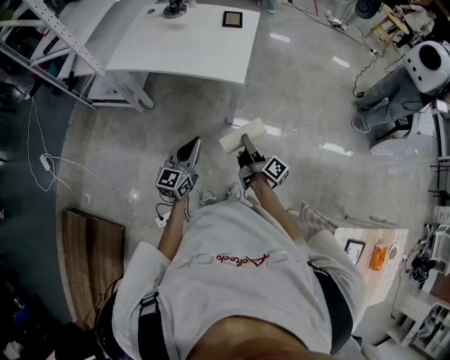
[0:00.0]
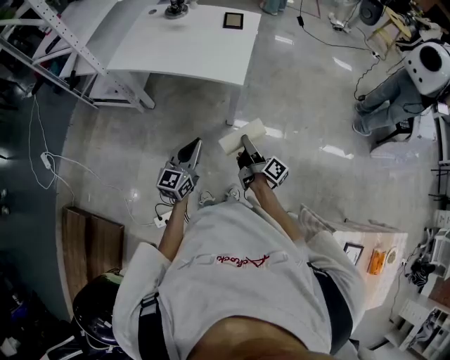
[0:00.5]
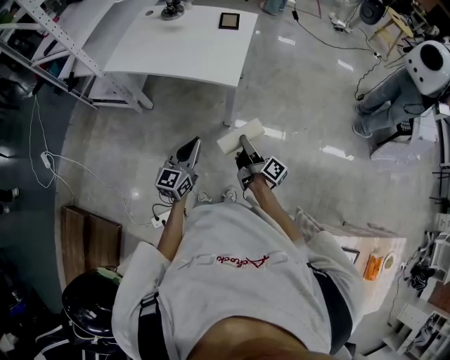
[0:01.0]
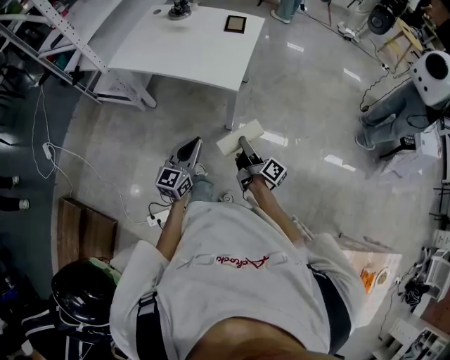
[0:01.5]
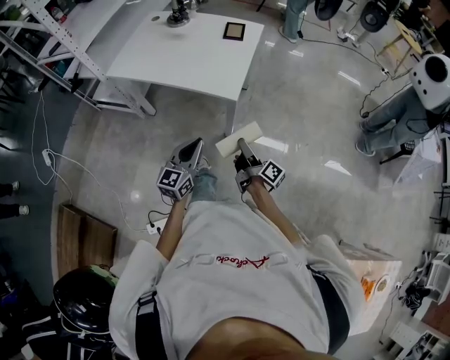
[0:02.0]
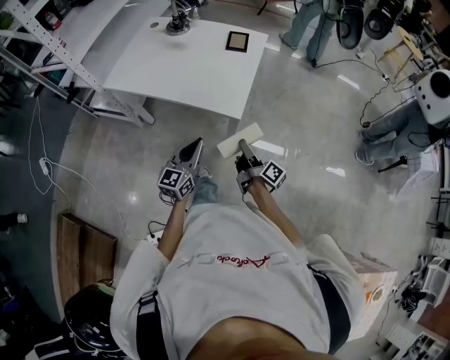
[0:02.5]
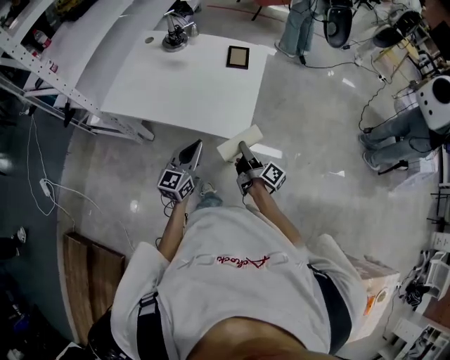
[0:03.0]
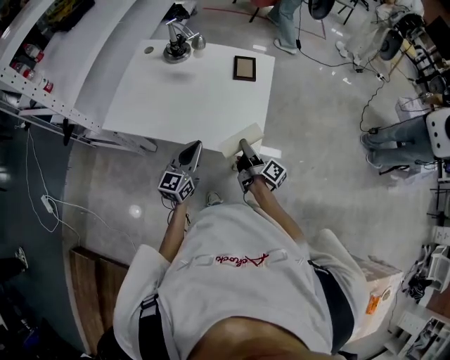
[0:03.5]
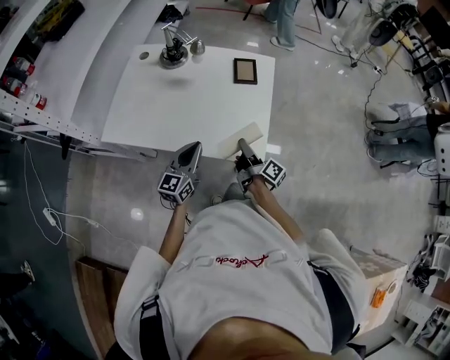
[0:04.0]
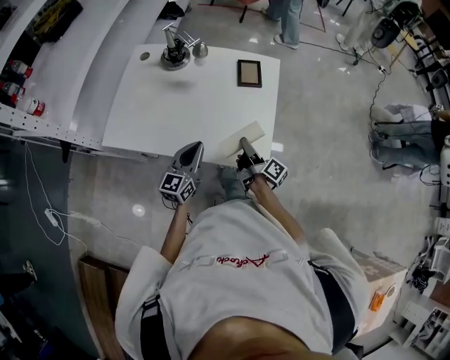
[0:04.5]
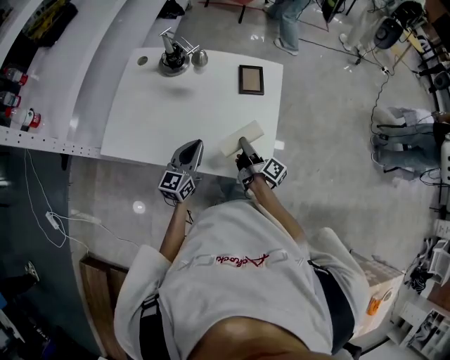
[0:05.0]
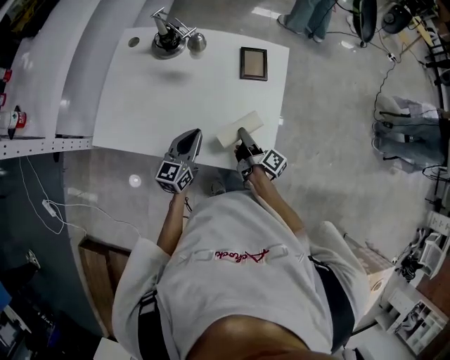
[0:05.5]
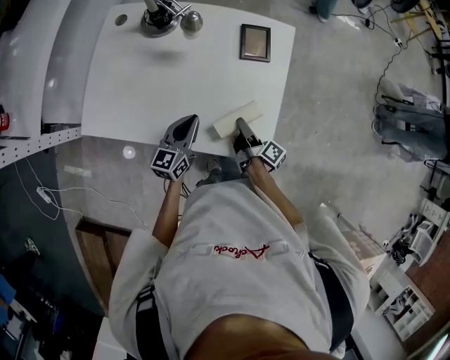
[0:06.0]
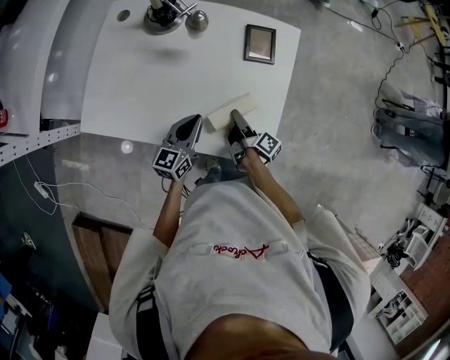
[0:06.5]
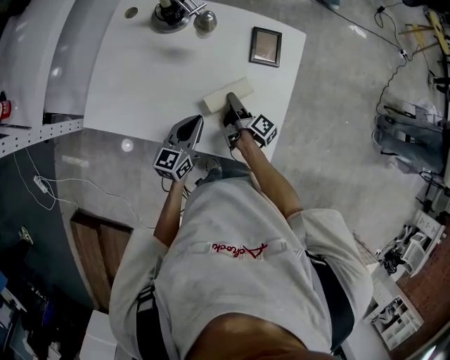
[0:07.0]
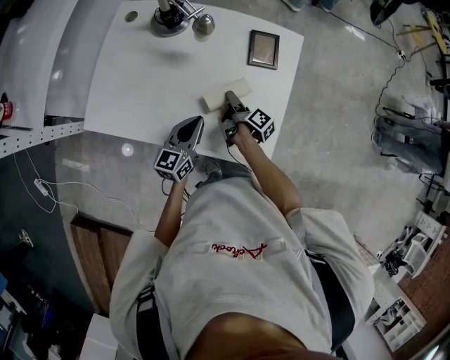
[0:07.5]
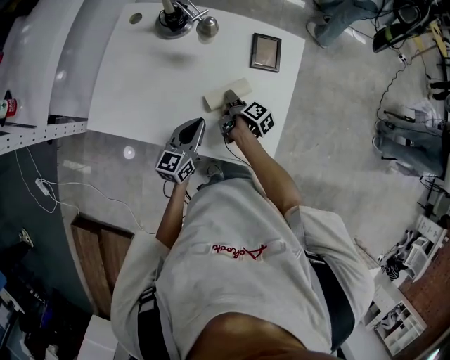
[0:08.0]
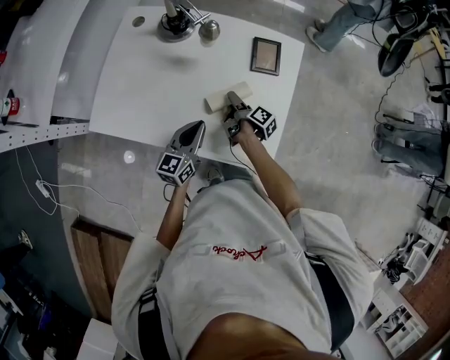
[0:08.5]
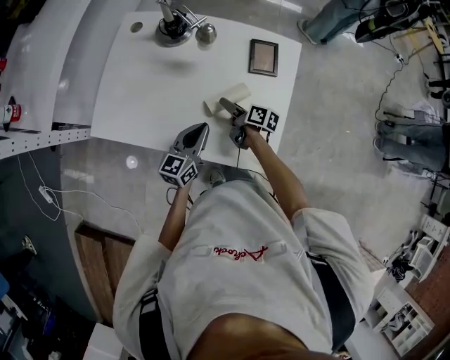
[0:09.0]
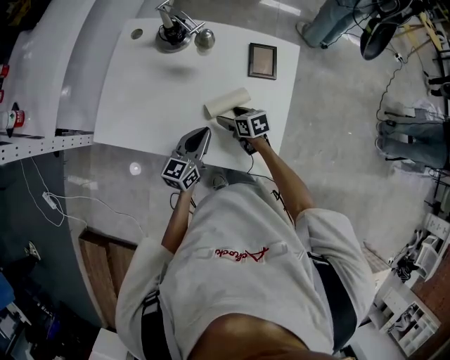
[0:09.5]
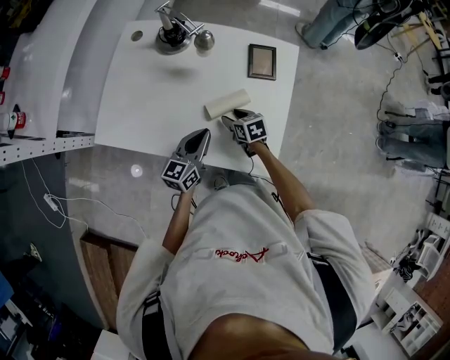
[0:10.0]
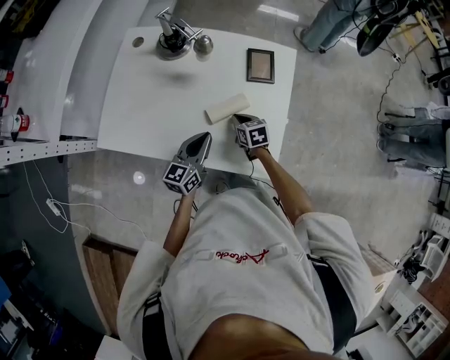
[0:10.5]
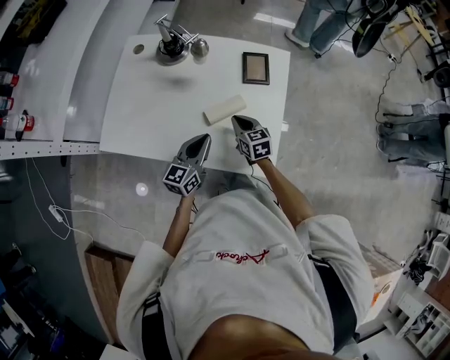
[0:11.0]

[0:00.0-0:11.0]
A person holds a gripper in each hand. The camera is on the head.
0:00.0 to 0:02.0: The right gripper heads forward, covering some 5 cm; the left gripper moves forward and to the right, some 10 cm.
0:02.0 to 0:03.5: The left gripper is displaced forward and to the left by roughly 30 cm. The right gripper moves forward, approximately 25 cm.
0:03.5 to 0:05.5: Both grippers move forward and downward, approximately 15 cm.
0:05.5 to 0:07.5: The right gripper is displaced forward, downward and to the left by roughly 10 cm.
0:07.5 to 0:09.0: The right gripper rotates about 30 degrees, and opens.
0:09.0 to 0:11.0: The right gripper moves upward, roughly 5 cm, rotates around the line of its fingers by some 50 degrees, counterclockwise from behind, and closes its fingers.

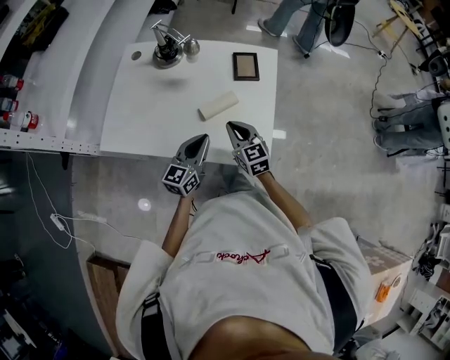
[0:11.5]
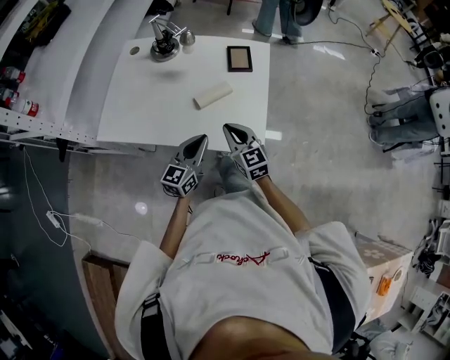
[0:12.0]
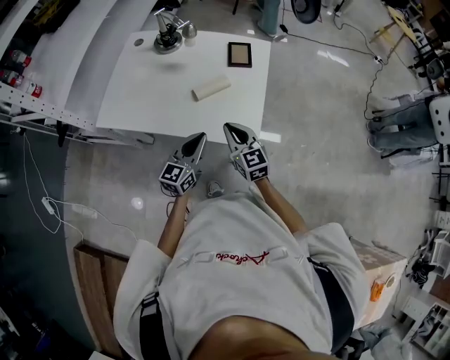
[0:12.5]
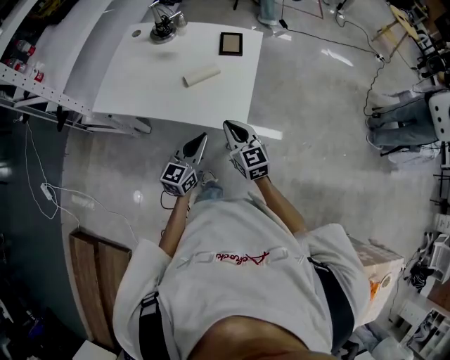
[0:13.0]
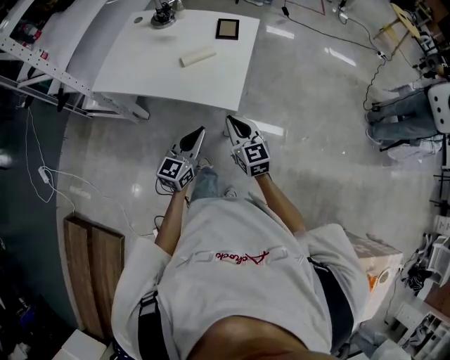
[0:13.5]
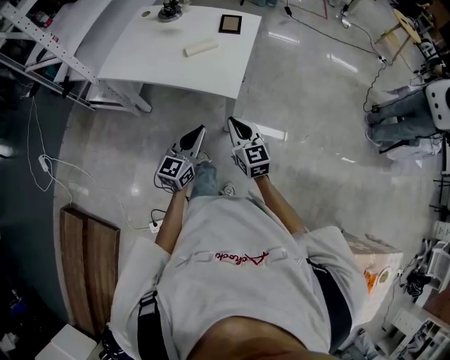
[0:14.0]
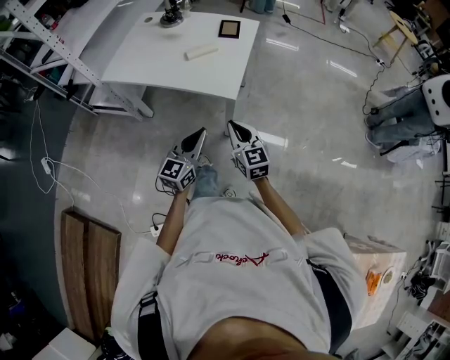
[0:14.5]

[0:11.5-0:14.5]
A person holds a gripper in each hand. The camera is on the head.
0:11.5 to 0:13.0: Both grippers travel together backward and to the right, some 20 cm.
0:13.0 to 0:14.5: Both grippers move backward, approximately 15 cm.

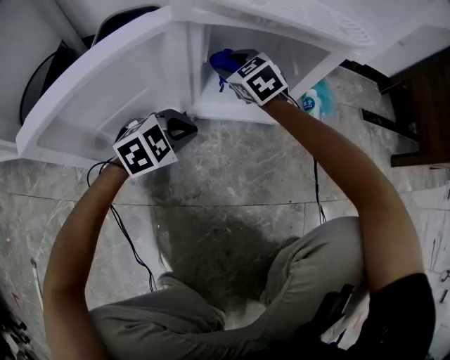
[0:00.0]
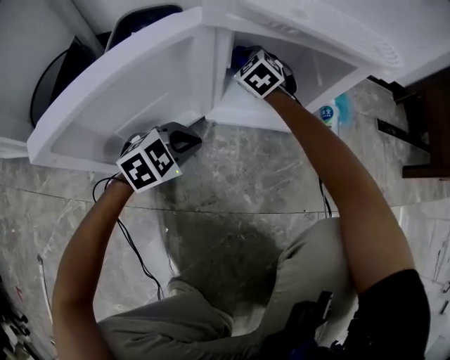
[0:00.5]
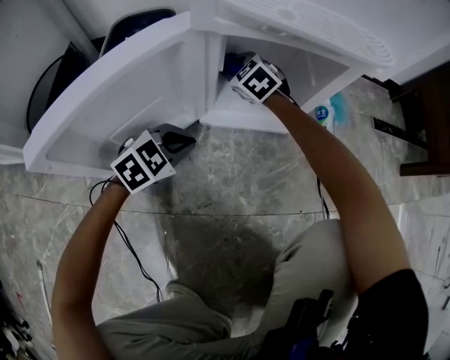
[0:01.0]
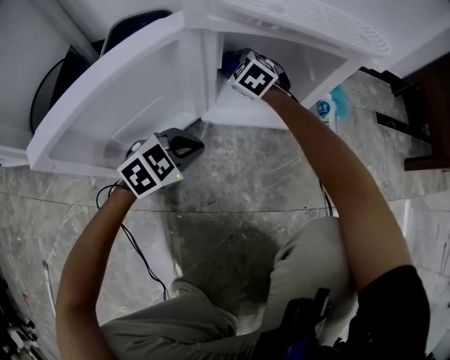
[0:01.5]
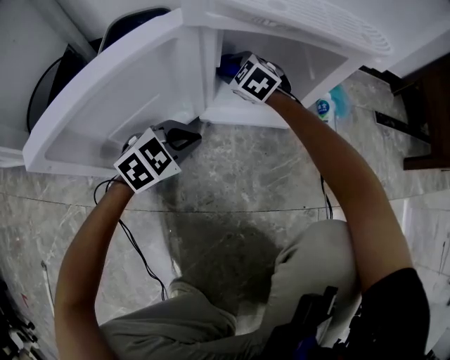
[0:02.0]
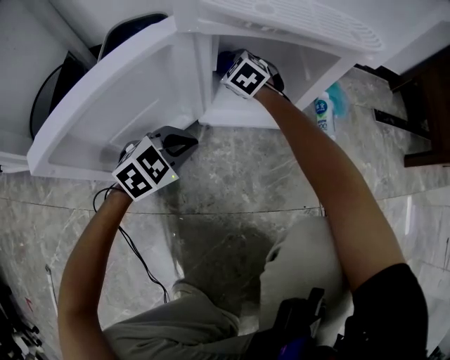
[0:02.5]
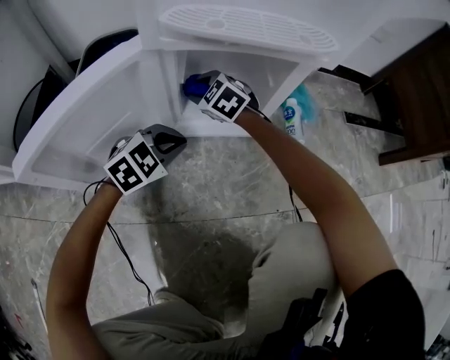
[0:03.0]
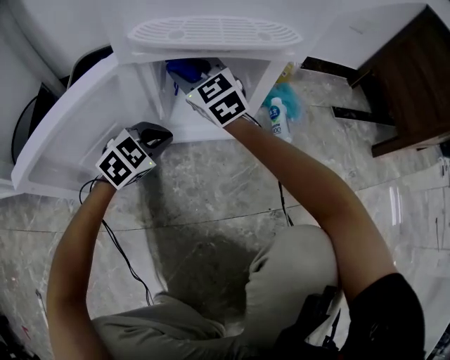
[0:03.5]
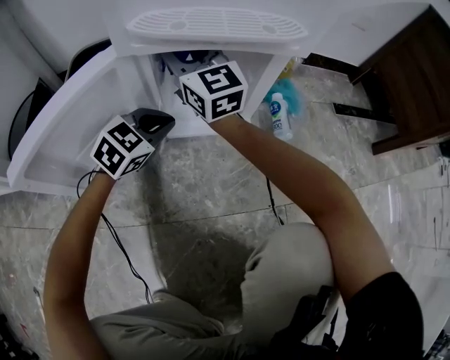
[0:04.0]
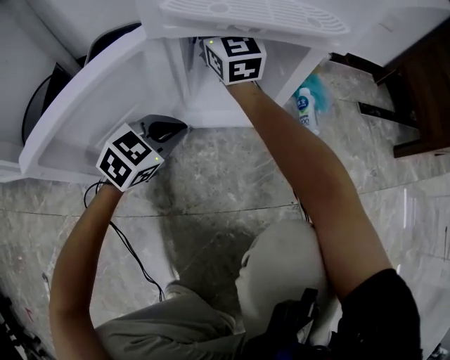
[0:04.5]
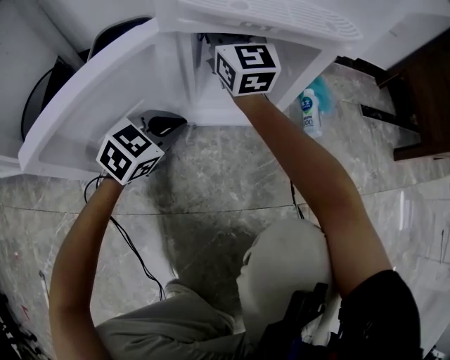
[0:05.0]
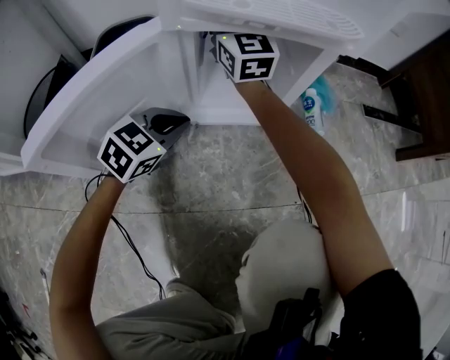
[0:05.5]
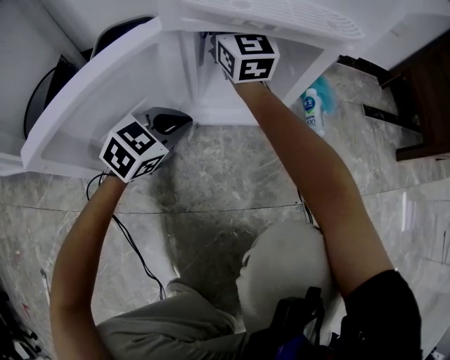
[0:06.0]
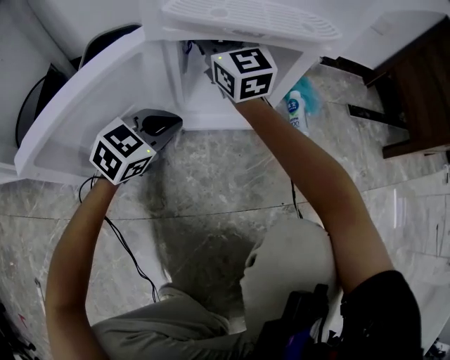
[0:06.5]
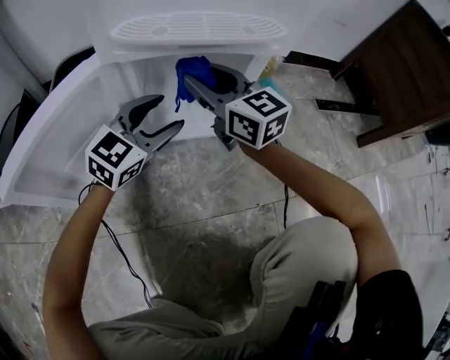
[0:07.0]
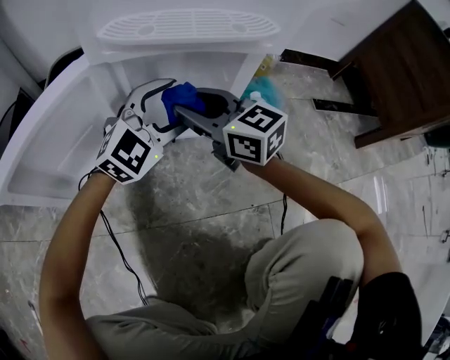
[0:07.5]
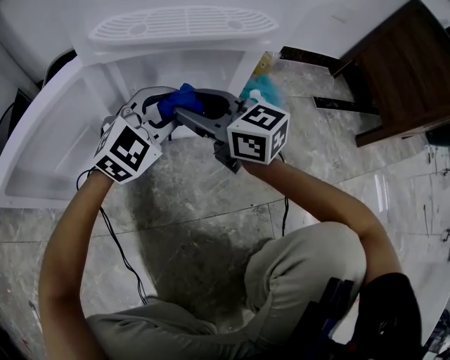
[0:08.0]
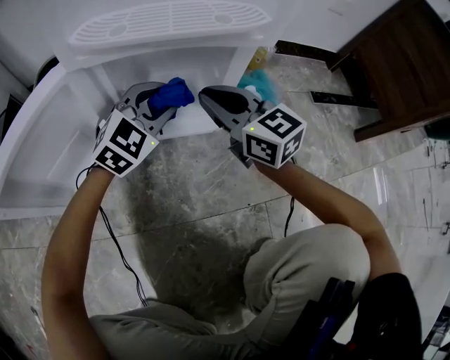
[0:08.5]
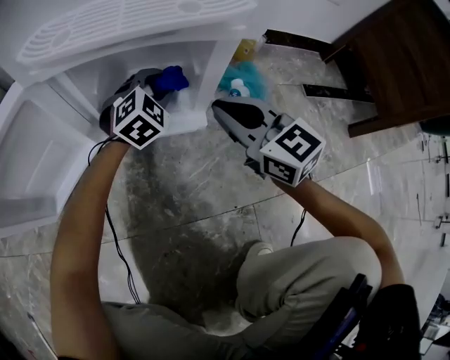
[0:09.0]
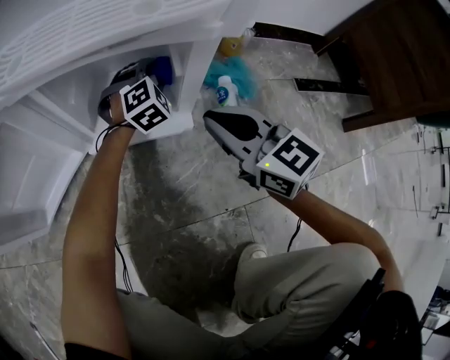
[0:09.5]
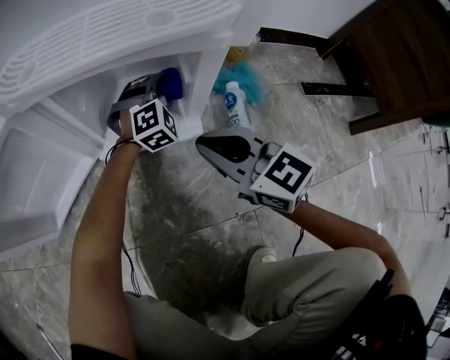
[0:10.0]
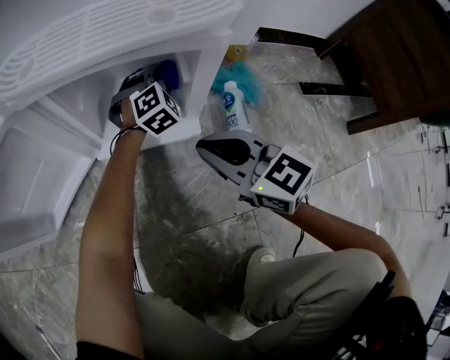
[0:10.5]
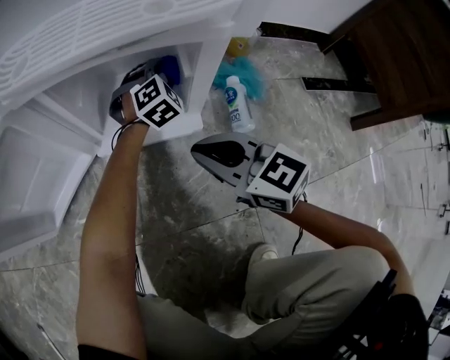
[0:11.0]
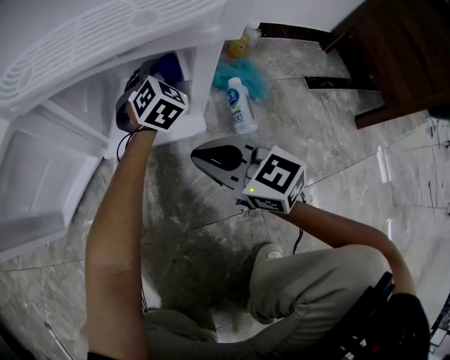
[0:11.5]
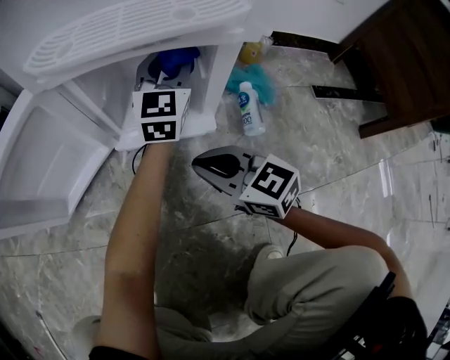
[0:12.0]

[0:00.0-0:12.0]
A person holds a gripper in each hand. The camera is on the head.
0:00.0 to 0:02.0: The right gripper travels downward by roughly 5 cm.
0:02.0 to 0:04.0: The right gripper shifts about 25 cm upward, and angles its fingers upward, by roughly 50 degrees. Meanwhile the left gripper shifts approximately 10 cm forward and upward.
0:04.0 to 0:06.0: The left gripper changes place by roughly 5 cm; the right gripper is displaced forward by some 5 cm.
0:06.0 to 0:08.0: The right gripper shifts roughly 20 cm backward, to the right and downward, and turns by roughly 40 degrees. The left gripper moves to the right, upward and forward, some 15 cm, swivels about 30 degrees, and opens its fingers.
0:08.0 to 0:10.0: The right gripper is displaced to the right by approximately 10 cm, and closes. Meanwhile the left gripper shifts roughly 25 cm downward, forward and to the right, and swivels approximately 30 degrees.
0:10.0 to 0:12.0: The right gripper goes some 5 cm to the left. The left gripper goes approximately 15 cm upward, and rotates around the line of its fingers by about 50 degrees, counterclockwise from behind.
